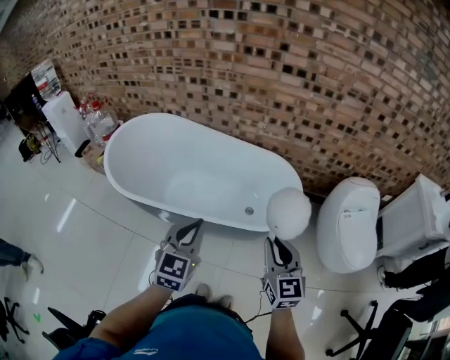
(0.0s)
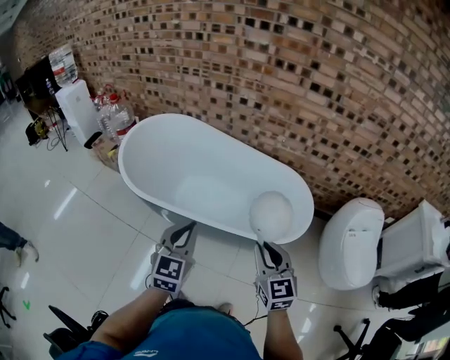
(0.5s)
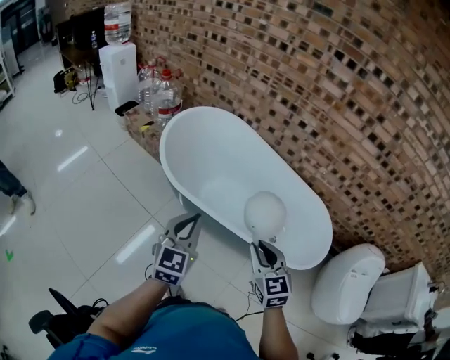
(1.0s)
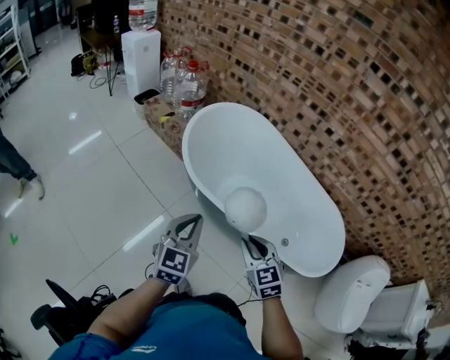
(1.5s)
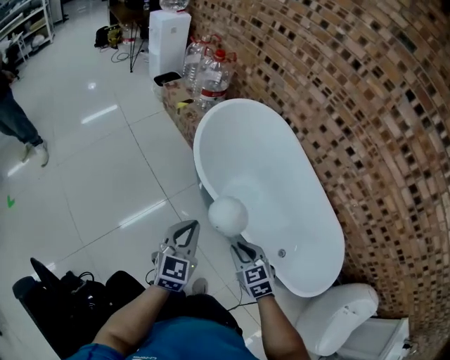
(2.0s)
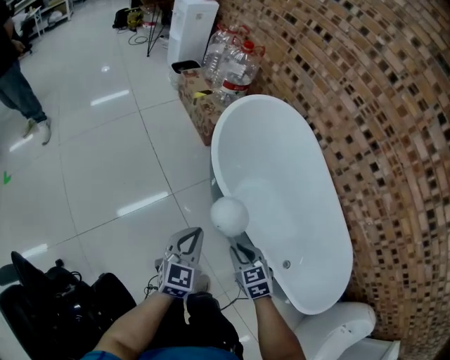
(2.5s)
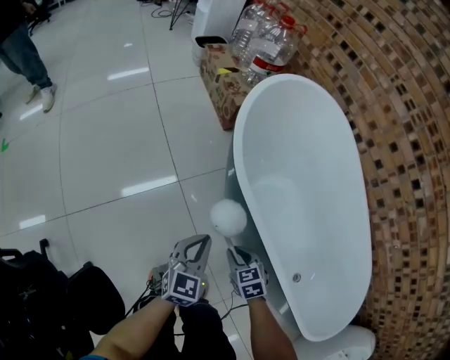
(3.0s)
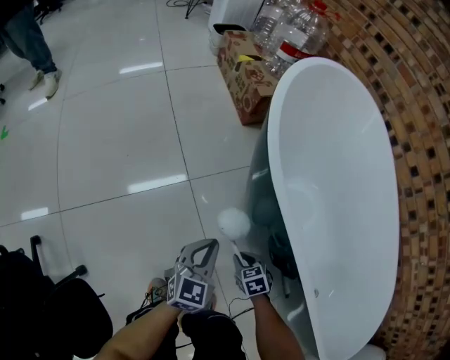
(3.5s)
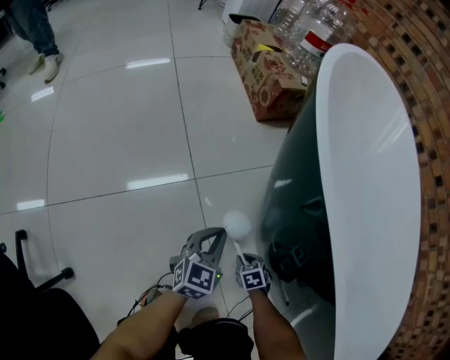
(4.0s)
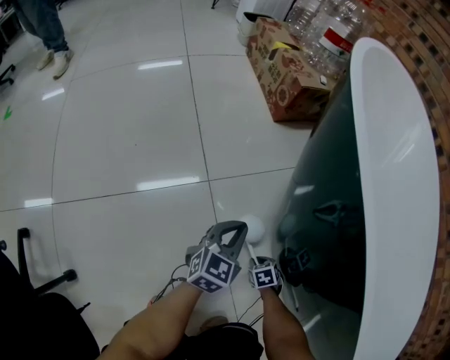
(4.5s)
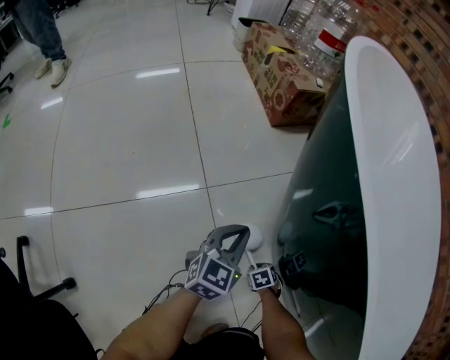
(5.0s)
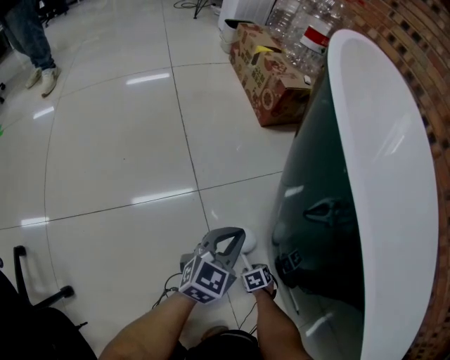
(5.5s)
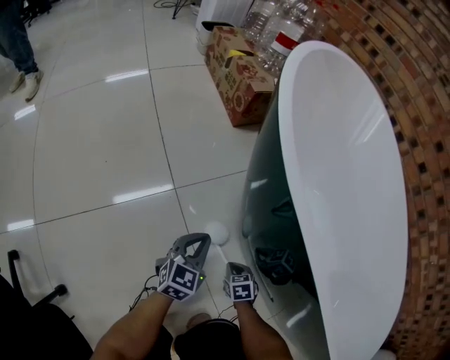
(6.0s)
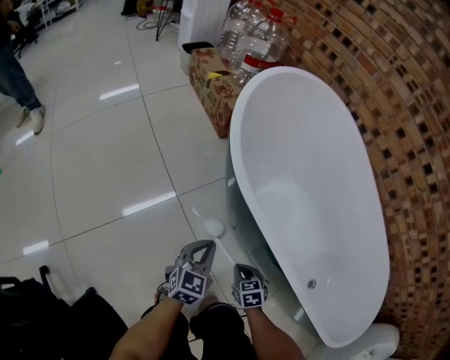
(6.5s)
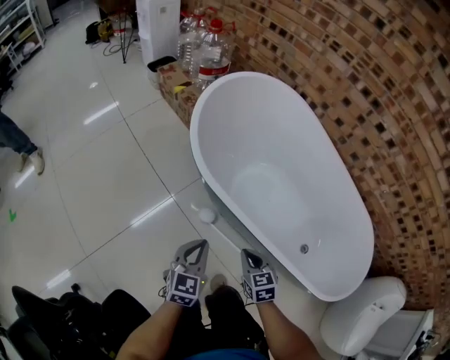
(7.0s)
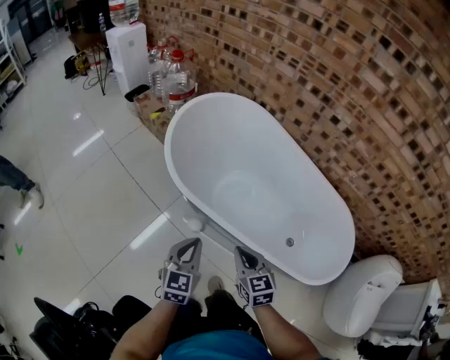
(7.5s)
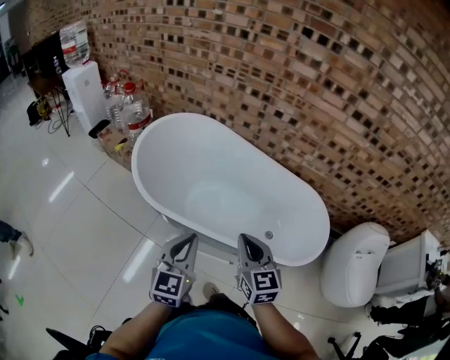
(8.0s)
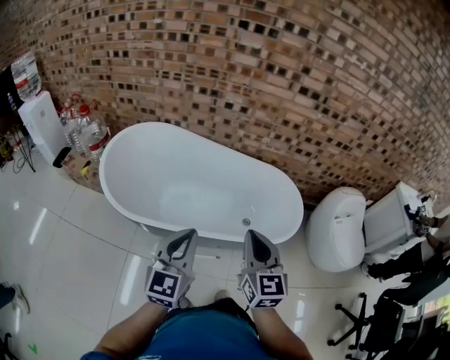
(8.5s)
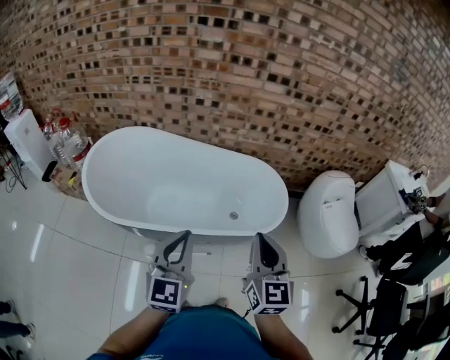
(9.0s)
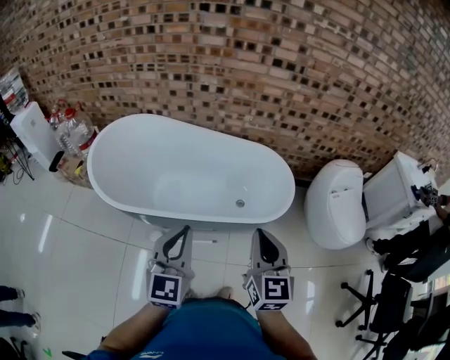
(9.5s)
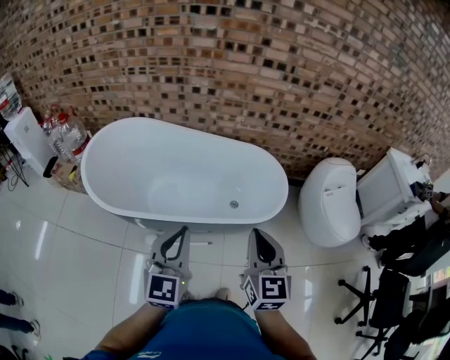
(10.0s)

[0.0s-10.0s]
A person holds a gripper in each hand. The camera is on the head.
0.0s to 2.0s: The two grippers travel together, roughly 50 cm. The left gripper rotates about 40 degrees. Meanwhile the right gripper tilts its fingers some 40 degrees downward.
2.0s to 4.0s: The grippers both shift downward by some 70 cm. The right gripper rotates some 30 degrees.
4.0s to 6.0s: The right gripper goes downward and returns, roughly 15 cm each way.
6.0s to 8.0s: The grippers both shift upward by about 80 cm. The right gripper points its fingers roughly 50 degrees further upward. Meanwhile the left gripper turns by about 30 degrees.
8.0s to 10.0s: The right gripper moves to the right, backward and upward, roughly 25 cm, and turns by some 30 degrees. The left gripper travels to the right and upward by approximately 20 cm.

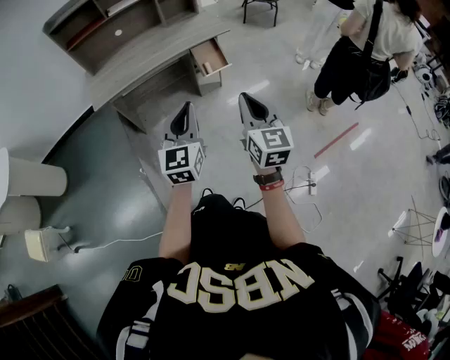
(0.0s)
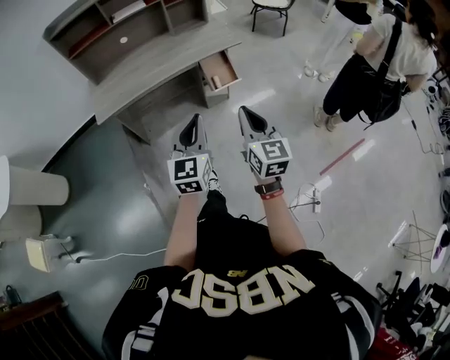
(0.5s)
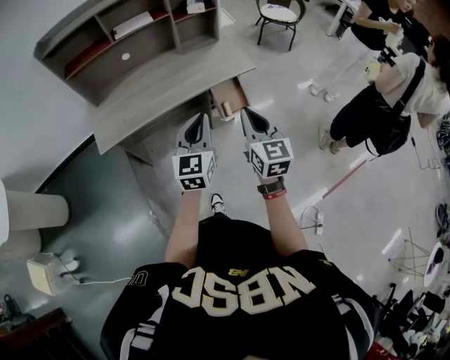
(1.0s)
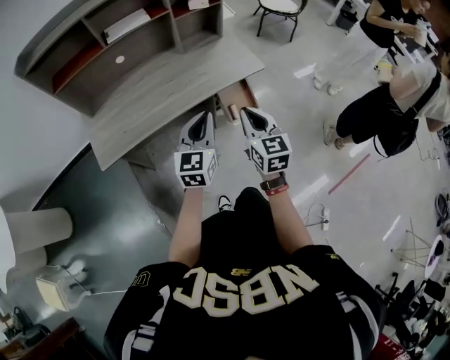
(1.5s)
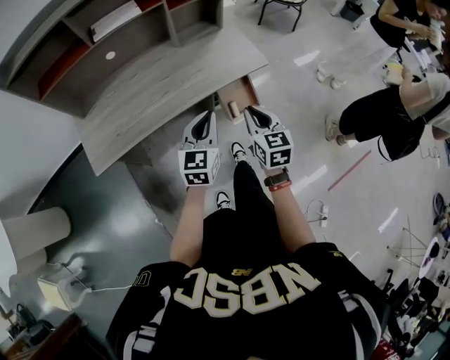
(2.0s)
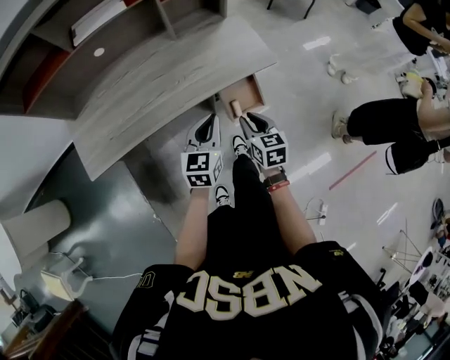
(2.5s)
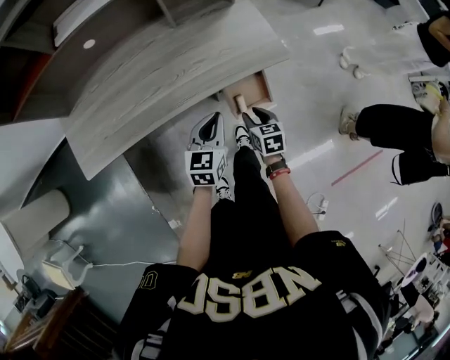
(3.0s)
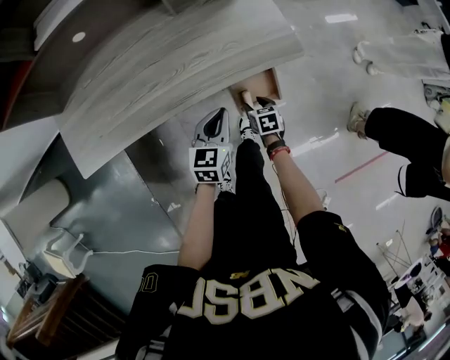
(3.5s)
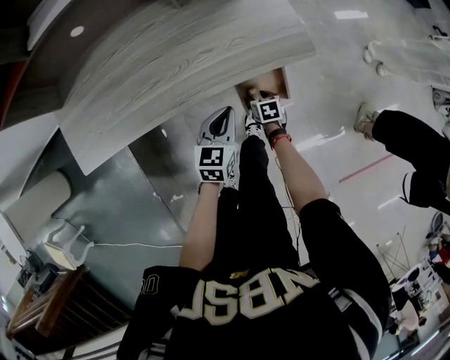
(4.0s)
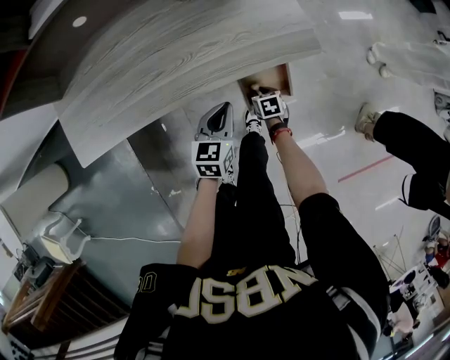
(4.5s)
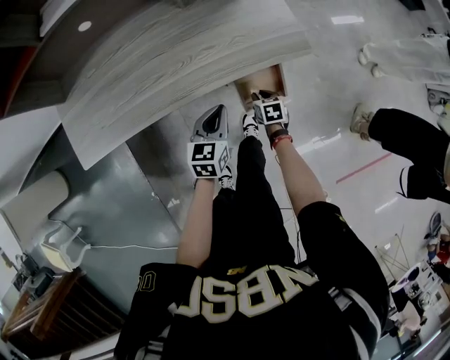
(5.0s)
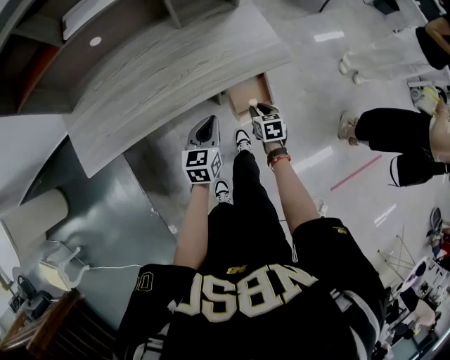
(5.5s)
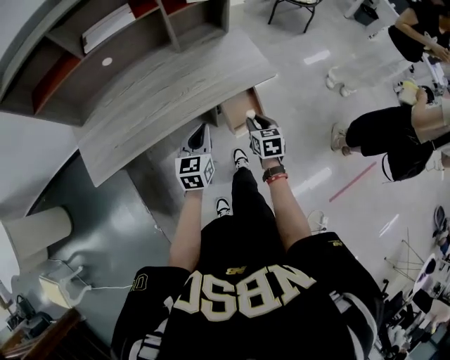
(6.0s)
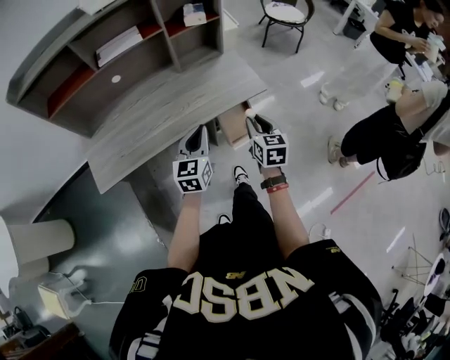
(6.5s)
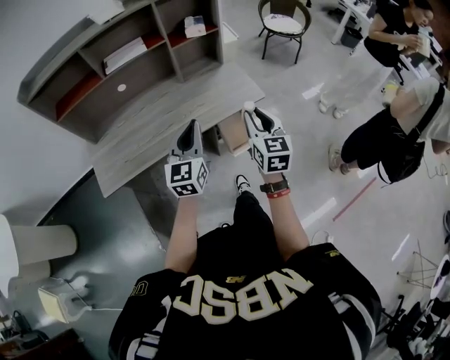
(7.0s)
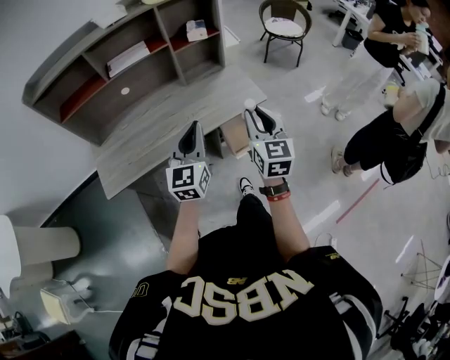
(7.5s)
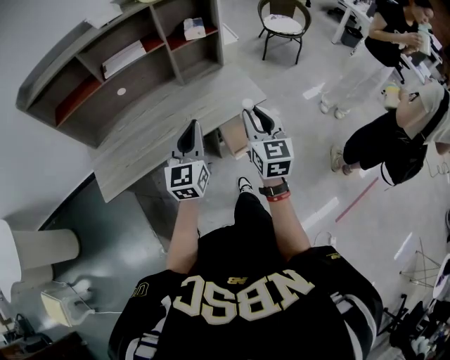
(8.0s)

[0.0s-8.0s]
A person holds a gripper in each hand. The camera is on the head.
0.0s to 2.0s: The pair of grippers is taken forward, roughly 40 cm.
2.0s to 4.0s: The left gripper goes approximately 25 cm downward and forward, and rotates approximately 20 degrees. The right gripper is displaced downward by approximately 40 cm, tips its fingers downward by roughly 40 degrees, and opens.
4.0s to 6.0s: The left gripper shifts about 15 cm upward, to the left and backward, while the right gripper shifts approximately 25 cm upward, rotates approximately 30 degrees, and closes.
6.0s to 8.0s: The two grippers go about 25 cm upward. The right gripper tips its fingers upward by roughly 30 degrees. Meanwhile the left gripper swivels about 20 degrees.

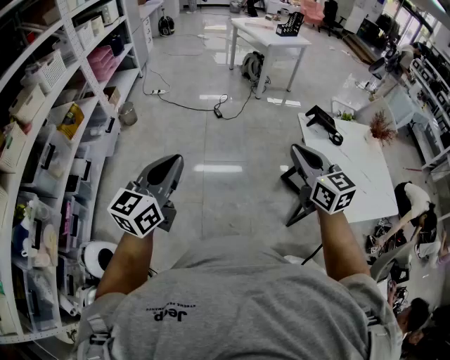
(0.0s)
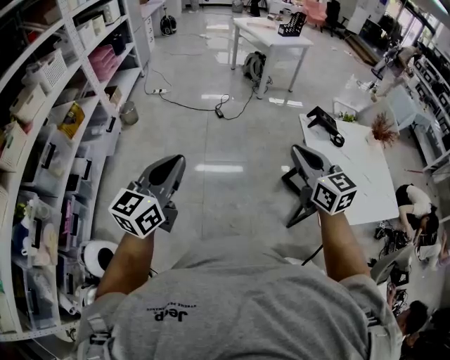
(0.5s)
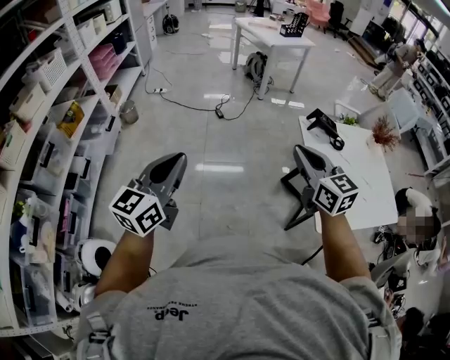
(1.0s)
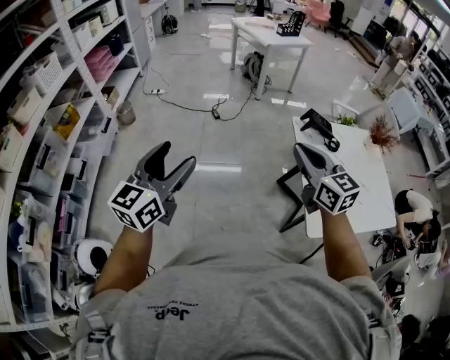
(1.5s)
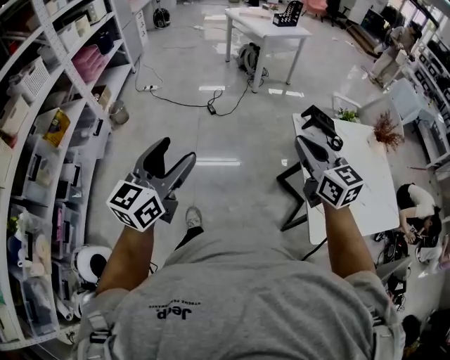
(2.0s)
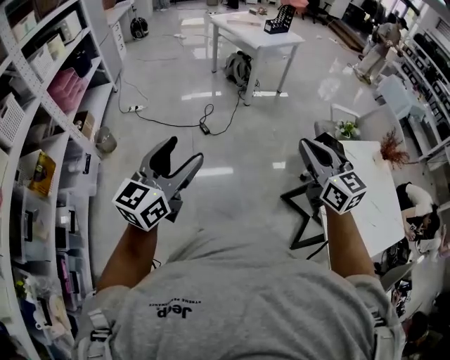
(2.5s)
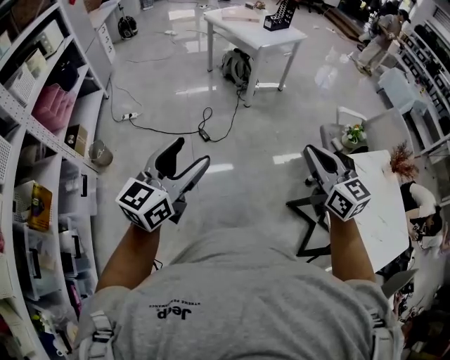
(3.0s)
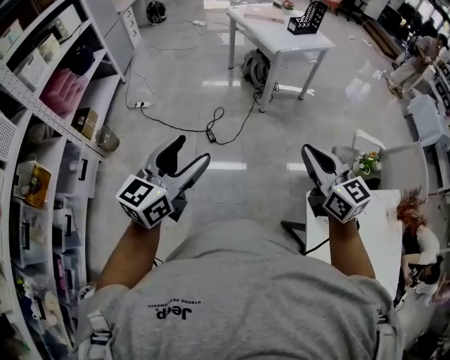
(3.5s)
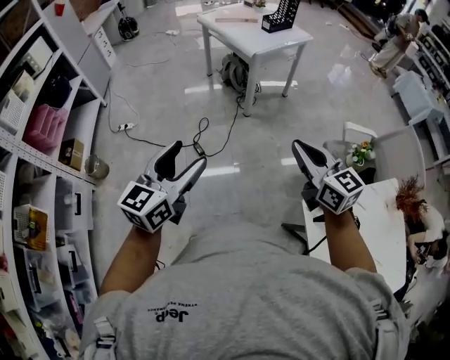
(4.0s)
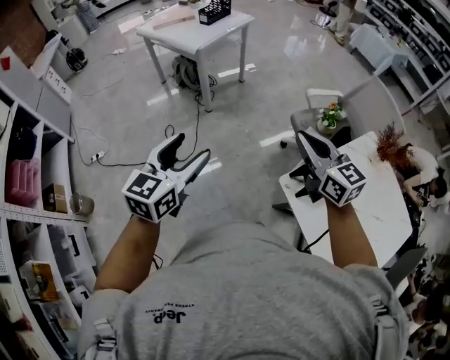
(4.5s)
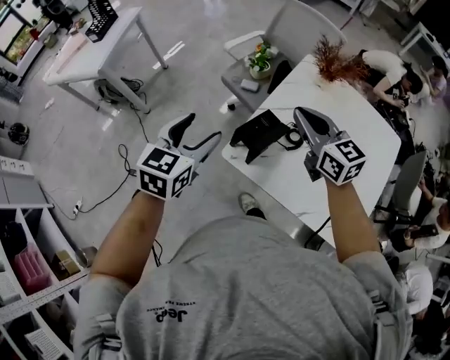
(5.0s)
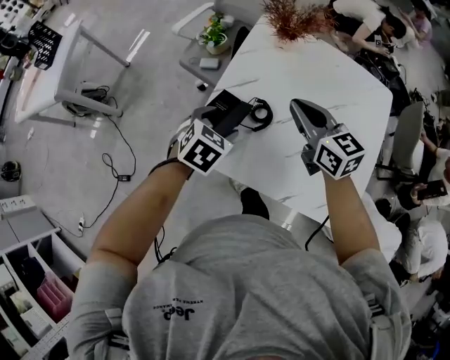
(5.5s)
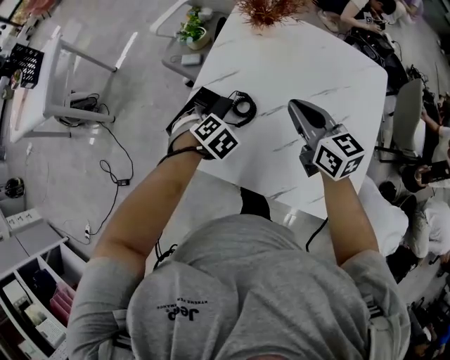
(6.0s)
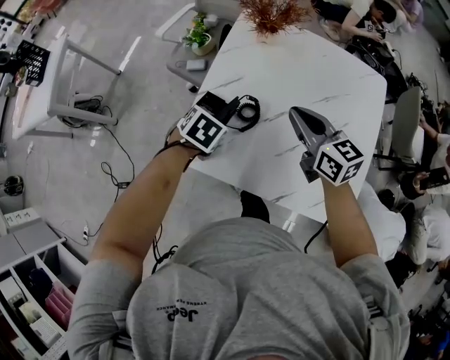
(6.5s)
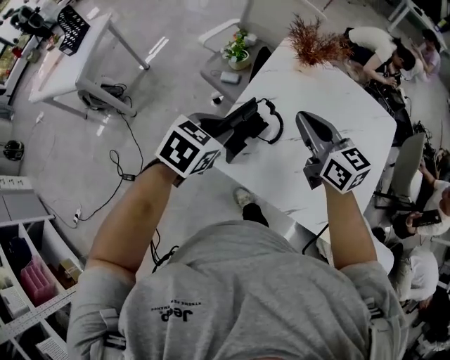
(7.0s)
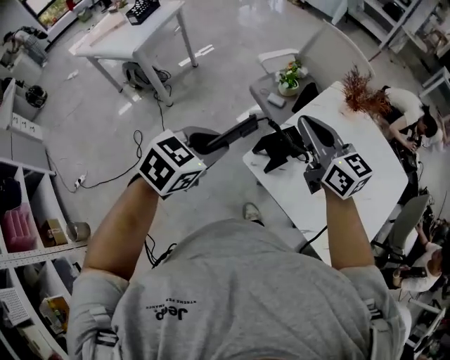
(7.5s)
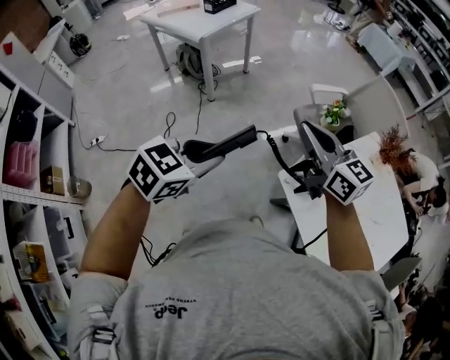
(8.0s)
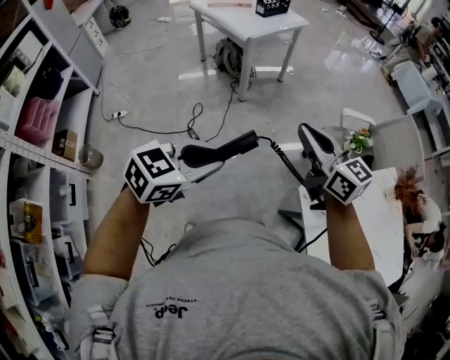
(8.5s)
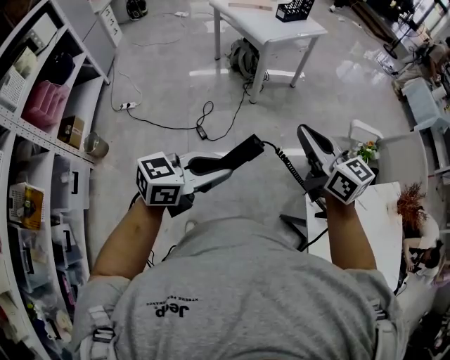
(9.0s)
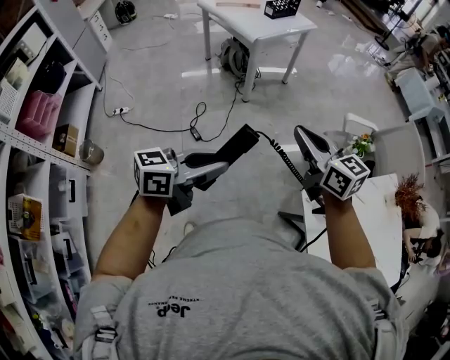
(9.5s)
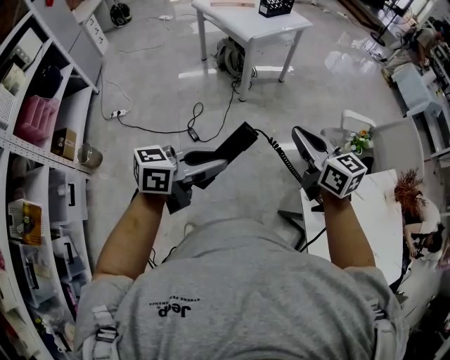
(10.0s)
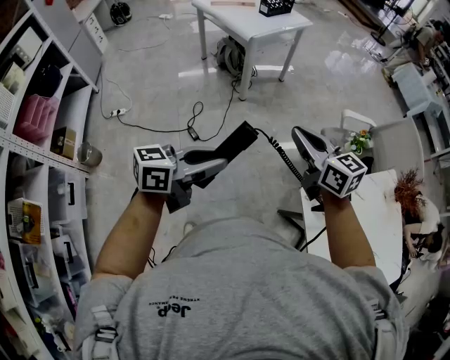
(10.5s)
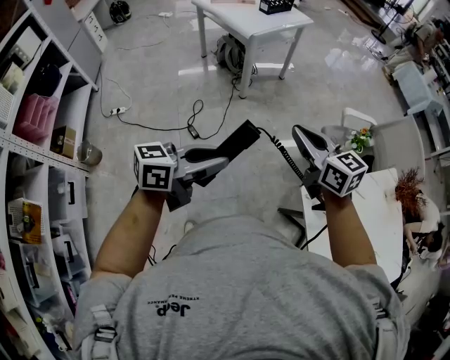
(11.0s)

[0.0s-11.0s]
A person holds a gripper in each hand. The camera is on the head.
0.0s to 2.0s: Both grippers travel together forward and to the right, some 15 cm. The left gripper opens.
2.0s to 3.5s: Both grippers are carried forward, some 50 cm.
3.5s to 5.5s: The pair of grippers is taken some 50 cm. The left gripper points its fingers some 50 degrees further downward; the right gripper rotates some 60 degrees.
5.5s to 7.5s: The right gripper is displaced to the left and upward by approximately 25 cm, and turns by approximately 20 degrees; the left gripper shifts approximately 30 cm to the left, upward and backward, and closes.
7.5s to 9.0s: The right gripper ends up roughly 35 cm from where it was, and swivels roughly 40 degrees; the left gripper ends up approximately 30 cm from where it was, and turns by about 50 degrees.
9.0s to 11.0s: The grippers move only a little.
